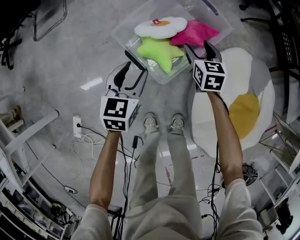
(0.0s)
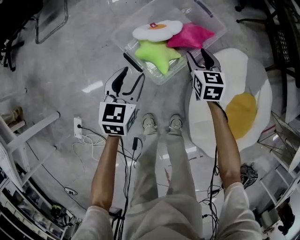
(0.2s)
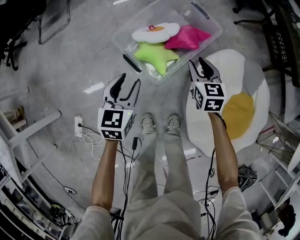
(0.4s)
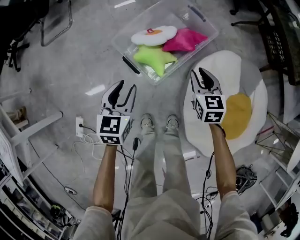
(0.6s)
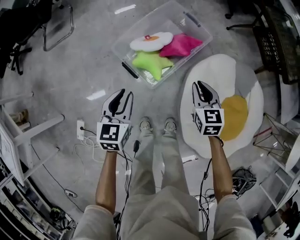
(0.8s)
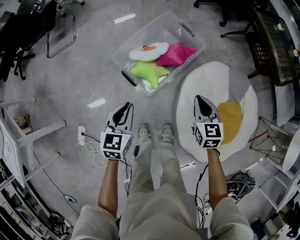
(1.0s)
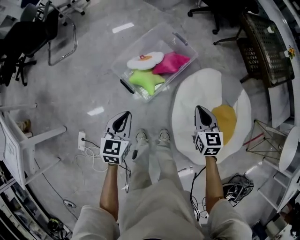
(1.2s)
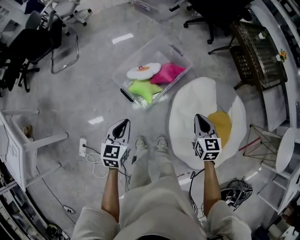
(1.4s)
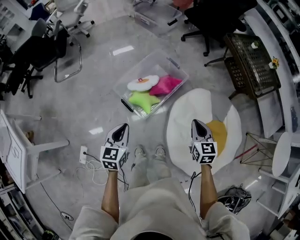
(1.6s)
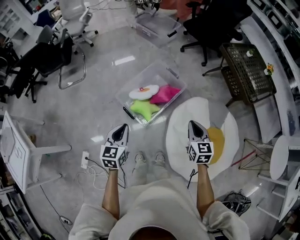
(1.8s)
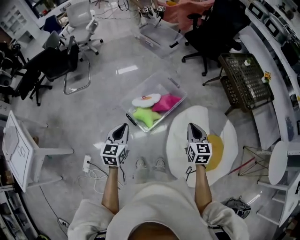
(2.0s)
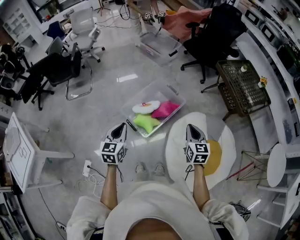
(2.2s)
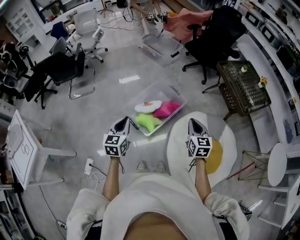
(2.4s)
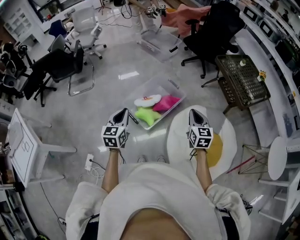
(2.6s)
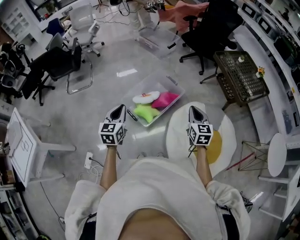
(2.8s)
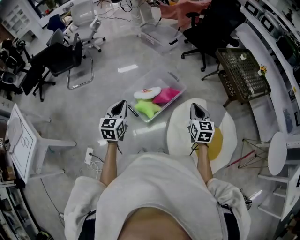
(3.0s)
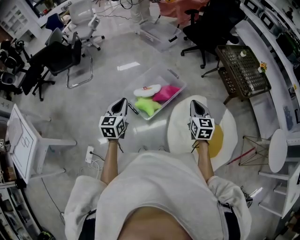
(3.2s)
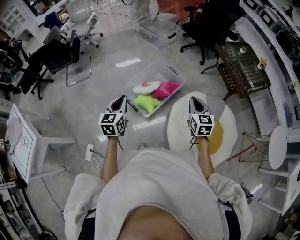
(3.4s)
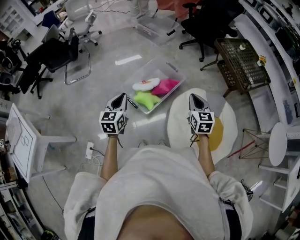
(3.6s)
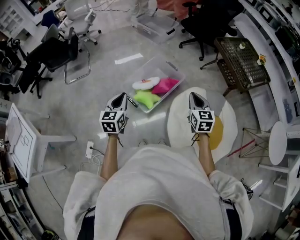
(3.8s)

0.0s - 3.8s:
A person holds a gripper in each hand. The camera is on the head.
0.0s - 1.2s: The right gripper is displaced upward, backward and to the right by about 35 cm, and closes. The left gripper travels upward and backward by about 25 cm, and closes up.
1.2s - 2.6s: The two grippers go about 25 cm upward.
2.6s - 3.8s: The grippers move only a little.

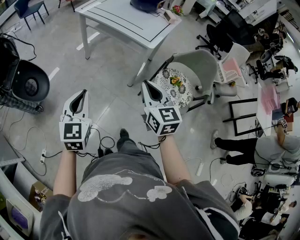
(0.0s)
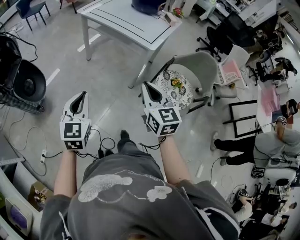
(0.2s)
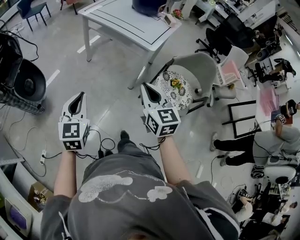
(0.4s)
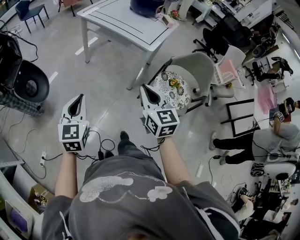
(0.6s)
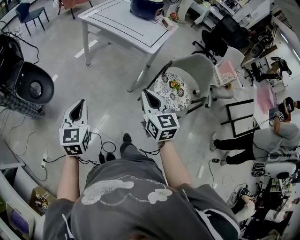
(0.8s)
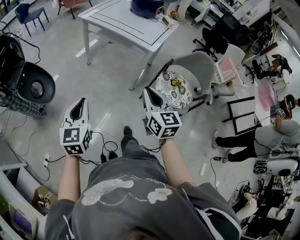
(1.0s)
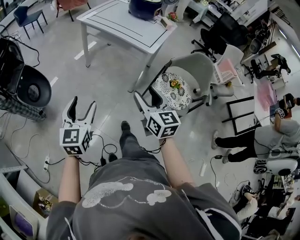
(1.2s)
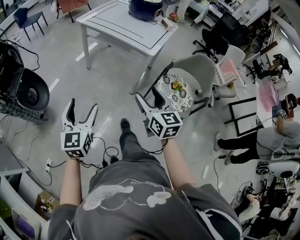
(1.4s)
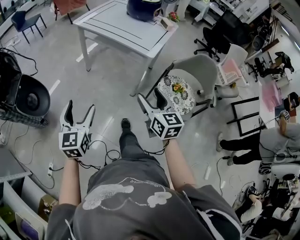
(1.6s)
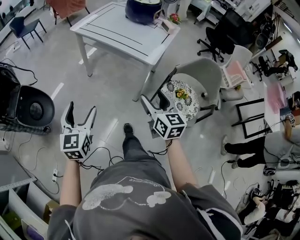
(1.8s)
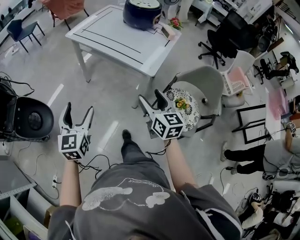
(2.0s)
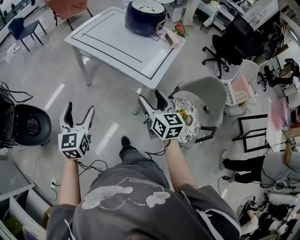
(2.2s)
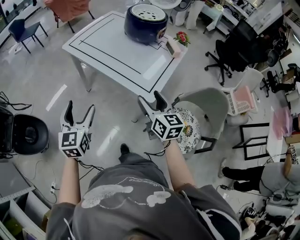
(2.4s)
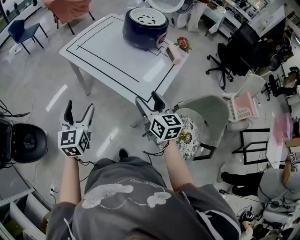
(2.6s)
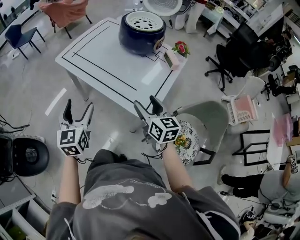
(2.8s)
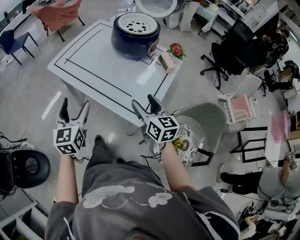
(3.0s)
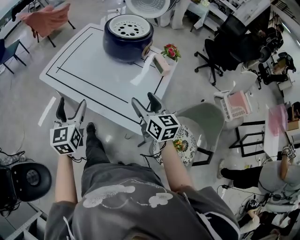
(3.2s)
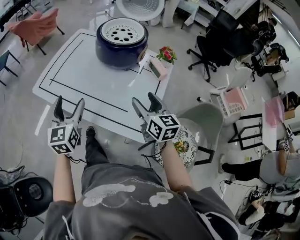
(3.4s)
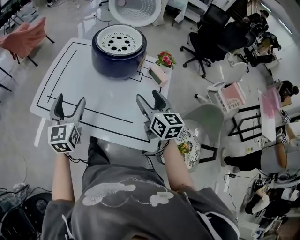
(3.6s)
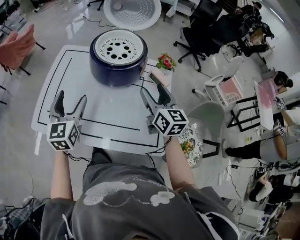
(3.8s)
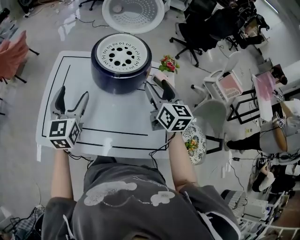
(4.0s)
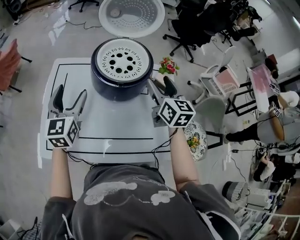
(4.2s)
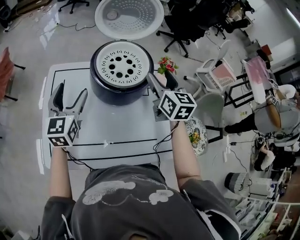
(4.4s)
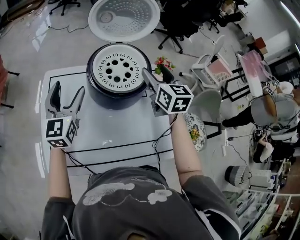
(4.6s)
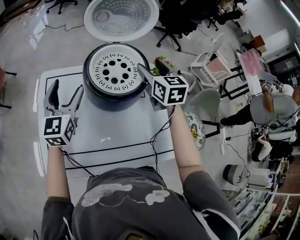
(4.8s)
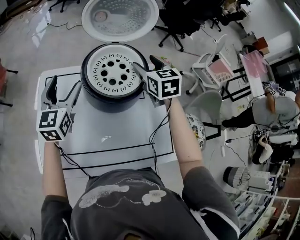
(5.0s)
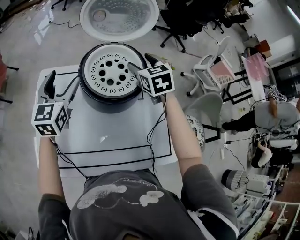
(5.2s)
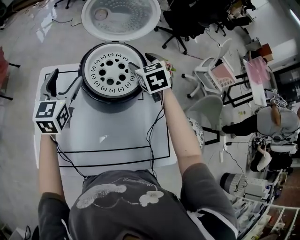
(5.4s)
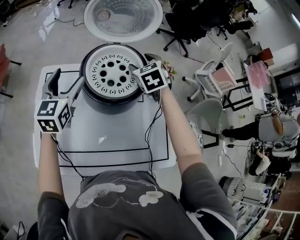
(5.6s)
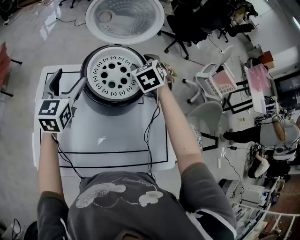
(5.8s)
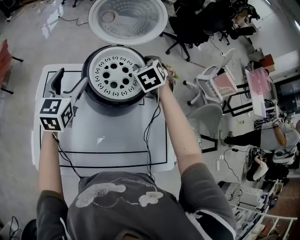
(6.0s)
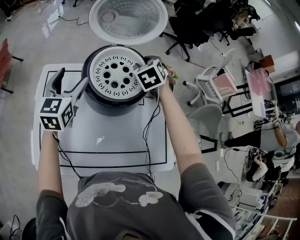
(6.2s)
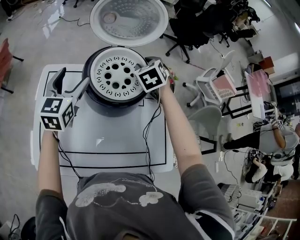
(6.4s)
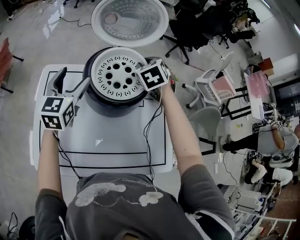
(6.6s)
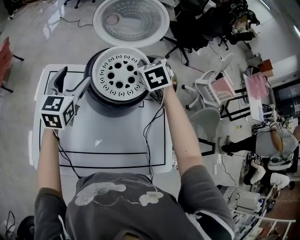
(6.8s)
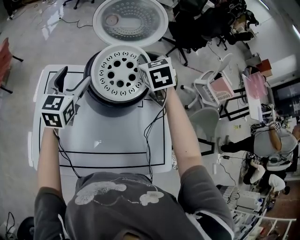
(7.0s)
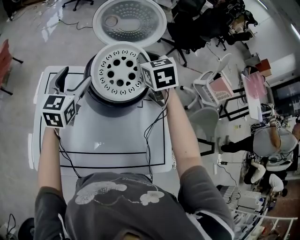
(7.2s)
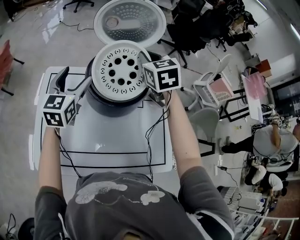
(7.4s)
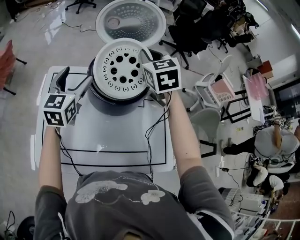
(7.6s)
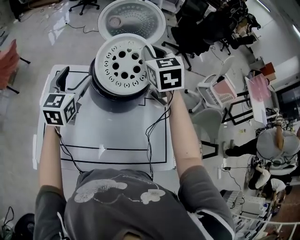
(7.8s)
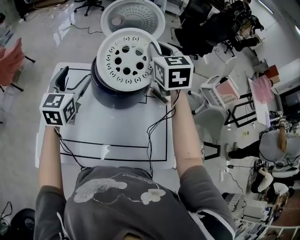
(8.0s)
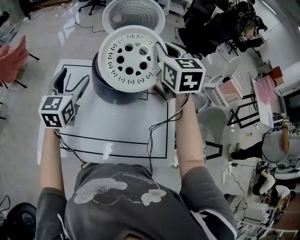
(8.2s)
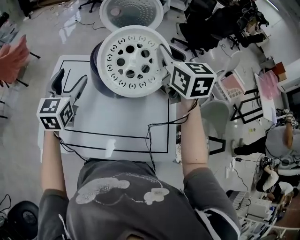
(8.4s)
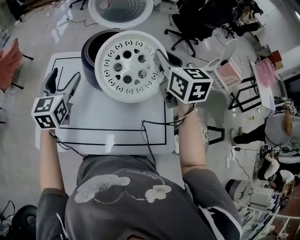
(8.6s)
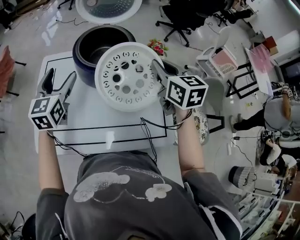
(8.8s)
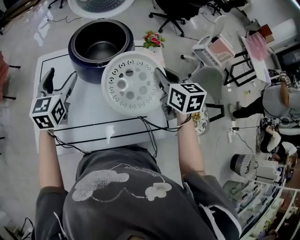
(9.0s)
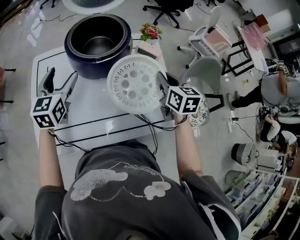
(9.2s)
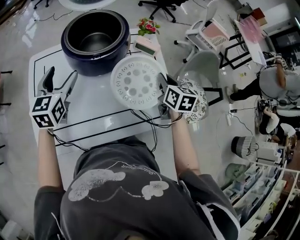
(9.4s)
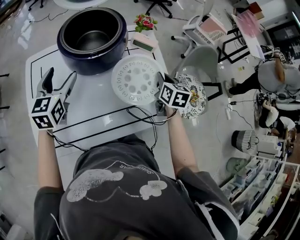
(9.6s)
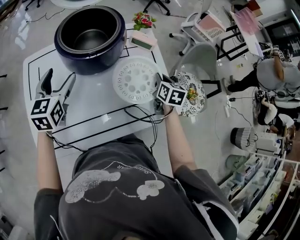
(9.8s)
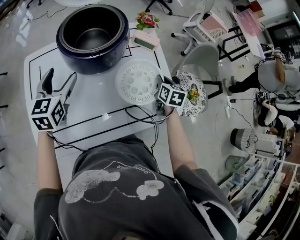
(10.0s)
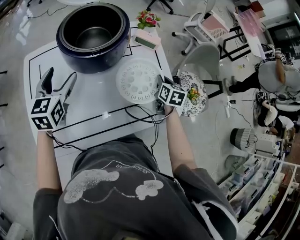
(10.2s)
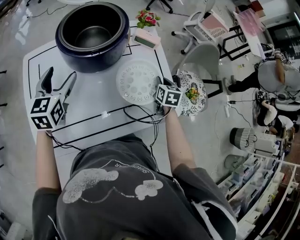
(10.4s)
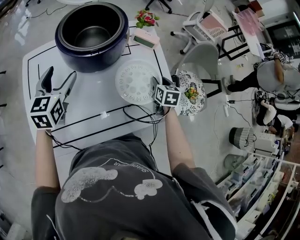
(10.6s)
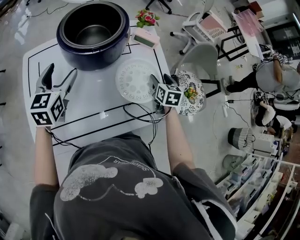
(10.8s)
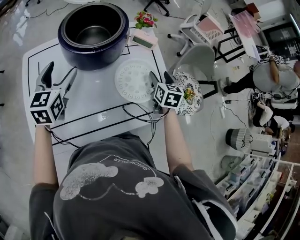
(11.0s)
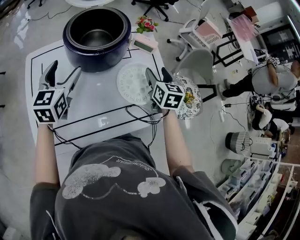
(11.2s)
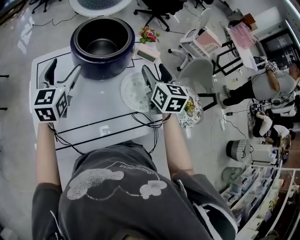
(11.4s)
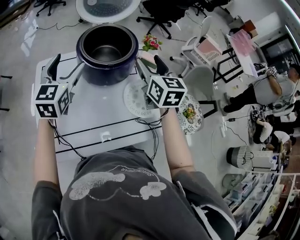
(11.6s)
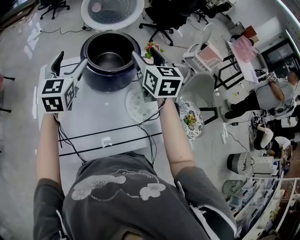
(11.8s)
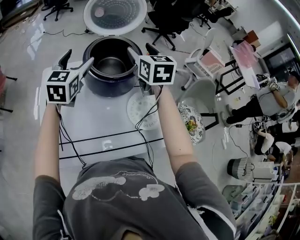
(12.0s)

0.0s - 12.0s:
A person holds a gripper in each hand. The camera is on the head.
0.0s - 1.6s: The left gripper moves about 5 cm, and opens. The right gripper opens.
1.6s - 3.0s: The pair of grippers is taken forward, about 50 cm.
3.0s - 4.4s: The right gripper changes place by about 35 cm, and rotates about 40 degrees. Meanwhile the left gripper moves roughly 50 cm, and rotates roughly 40 degrees.
4.4s - 6.0s: The right gripper heads forward and downward, covering about 15 cm, and tips its fingers downward by about 30 degrees; the left gripper shifts some 10 cm forward.
6.0s - 7.6s: The right gripper travels upward by some 15 cm, rotates approximately 20 degrees, and closes up.
7.6s - 9.0s: The right gripper moves backward and to the right, about 25 cm, and rotates approximately 30 degrees. Meanwhile the left gripper moves backward, about 10 cm.
9.0s - 10.4s: The right gripper shifts some 25 cm downward, and changes its angle by roughly 30 degrees. The left gripper moves downward, about 5 cm.
10.4s - 12.0s: The left gripper shifts some 15 cm upward and forward; the right gripper is displaced upward and to the left by approximately 40 cm, turns by some 30 degrees, and opens its fingers.

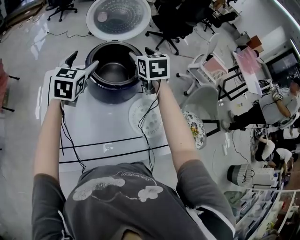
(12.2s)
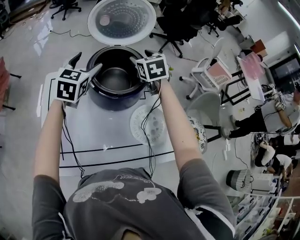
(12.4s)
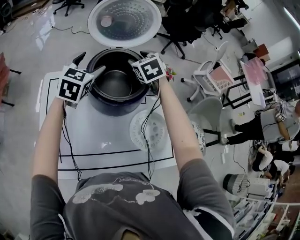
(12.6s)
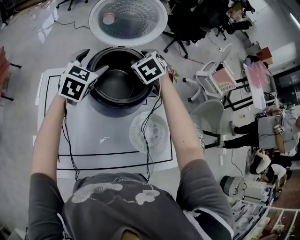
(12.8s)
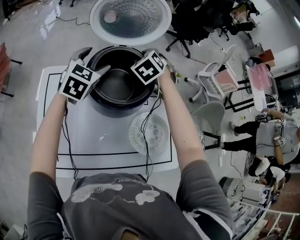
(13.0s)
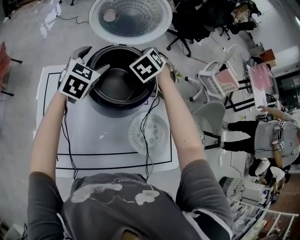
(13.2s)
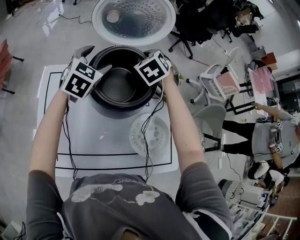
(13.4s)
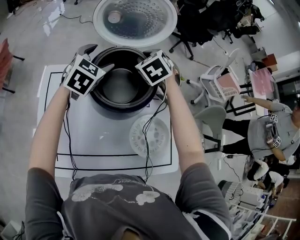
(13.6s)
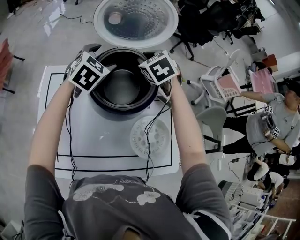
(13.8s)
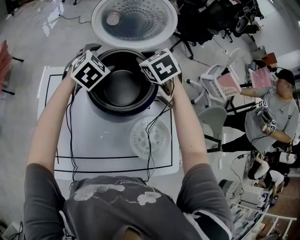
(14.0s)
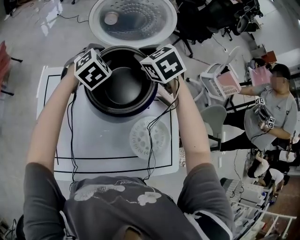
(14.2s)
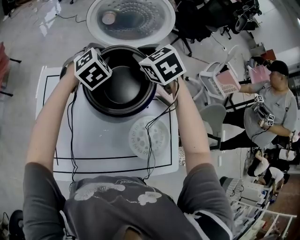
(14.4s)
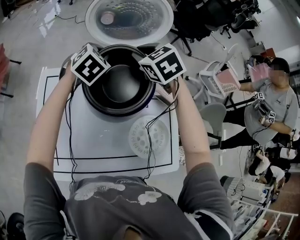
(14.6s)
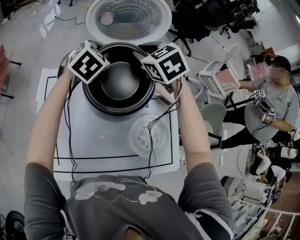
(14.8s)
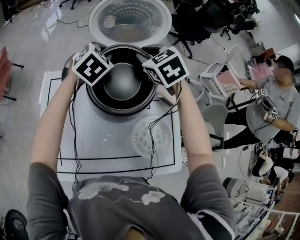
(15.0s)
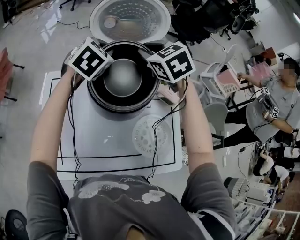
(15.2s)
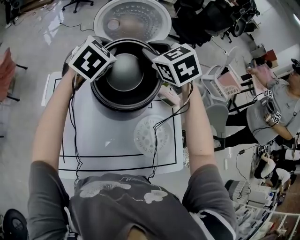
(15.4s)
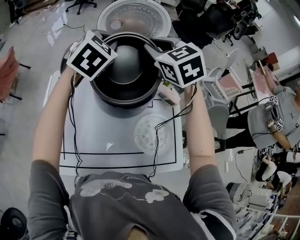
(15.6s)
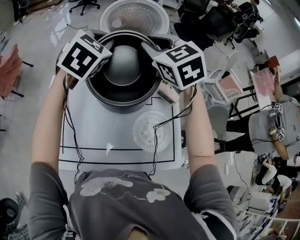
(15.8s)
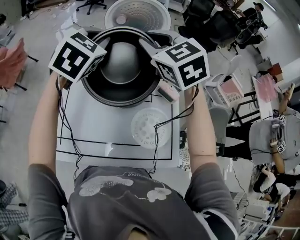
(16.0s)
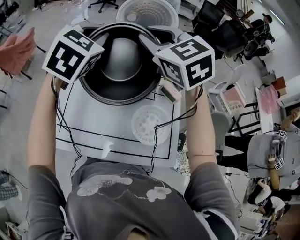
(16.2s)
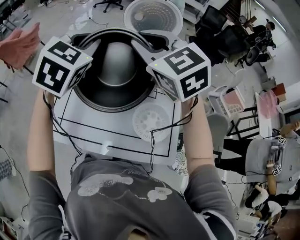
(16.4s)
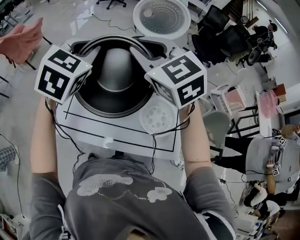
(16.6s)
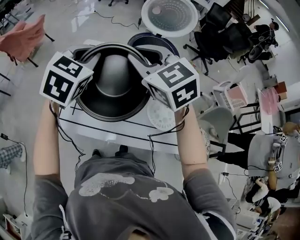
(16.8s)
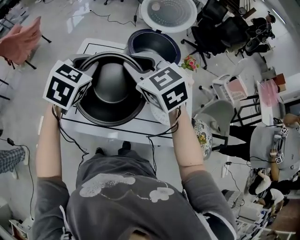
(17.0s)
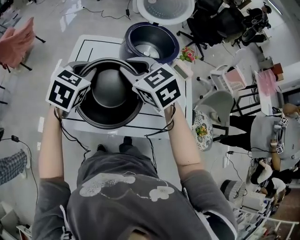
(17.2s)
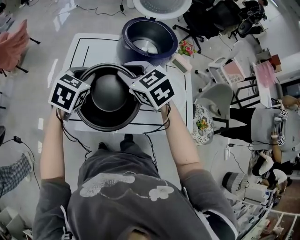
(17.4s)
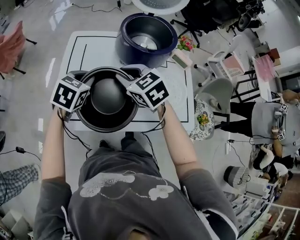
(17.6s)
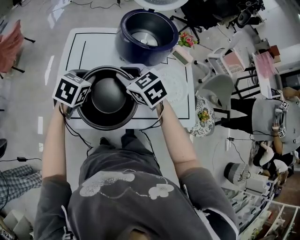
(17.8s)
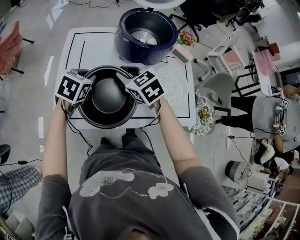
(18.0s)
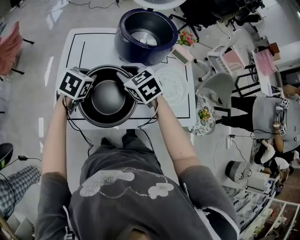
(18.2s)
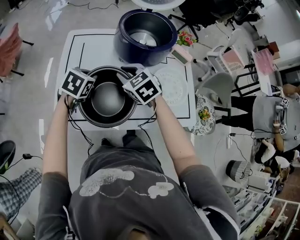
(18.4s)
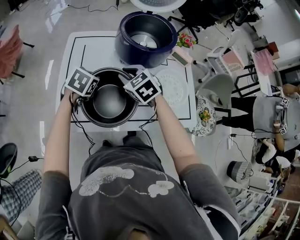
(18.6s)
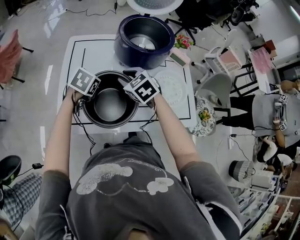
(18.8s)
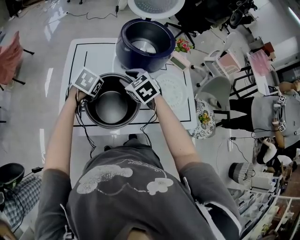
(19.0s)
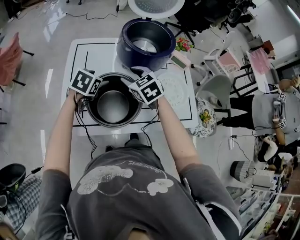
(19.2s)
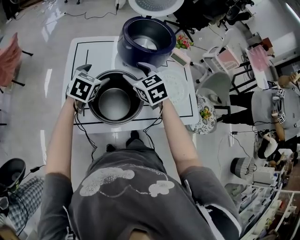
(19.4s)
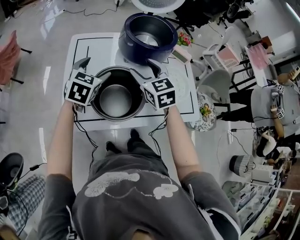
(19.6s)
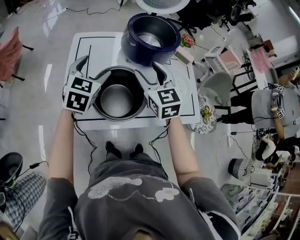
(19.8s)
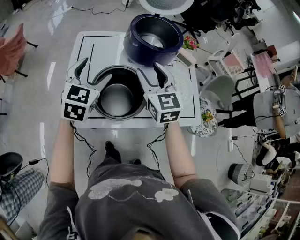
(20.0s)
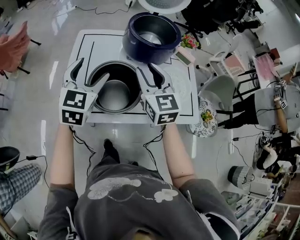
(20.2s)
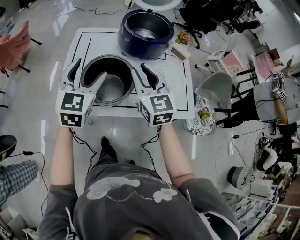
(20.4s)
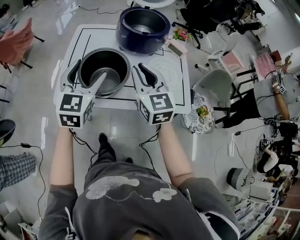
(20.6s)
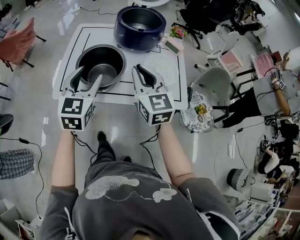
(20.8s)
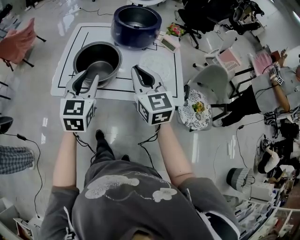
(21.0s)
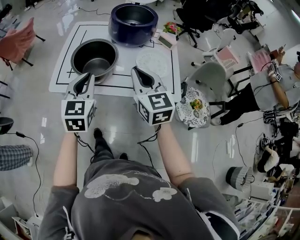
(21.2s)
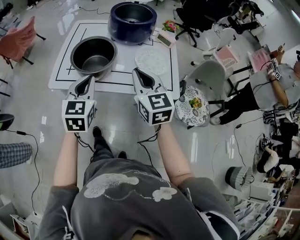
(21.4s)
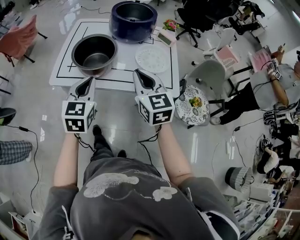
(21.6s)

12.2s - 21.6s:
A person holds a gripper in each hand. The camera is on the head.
12.2s - 13.8s: Both grippers move forward and downward, approximately 10 cm. The left gripper rotates approximately 20 degrees; the right gripper changes its angle by roughly 40 degrees, and closes up.
13.8s - 15.4s: Both grippers move upward, about 10 cm. The left gripper closes its fingers.
15.4s - 17.0s: The two grippers go roughly 35 cm backward and to the left.
17.0s - 18.4s: The grippers both shift downward by approximately 20 cm. The left gripper rotates about 30 degrees.
18.4s - 20.0s: The two grippers go about 10 cm upward. The right gripper changes its angle by roughly 40 degrees, and opens. The left gripper tilts its fingers roughly 30 degrees upward, and opens up.
20.0s - 21.6s: The left gripper goes roughly 25 cm backward, and closes its fingers, while the right gripper shifts some 25 cm backward and to the right, and closes up.
